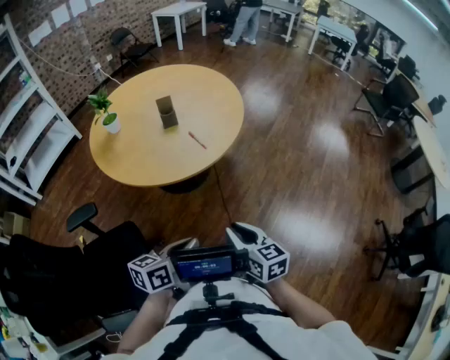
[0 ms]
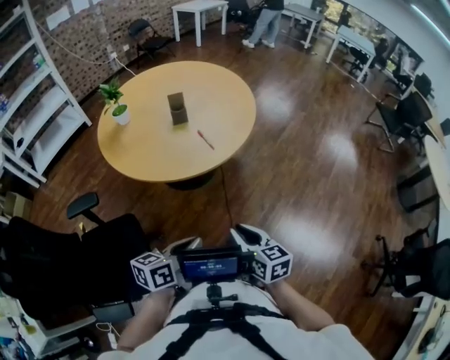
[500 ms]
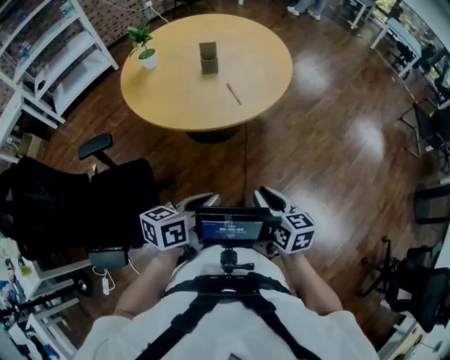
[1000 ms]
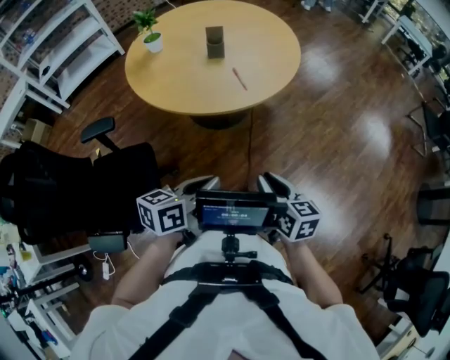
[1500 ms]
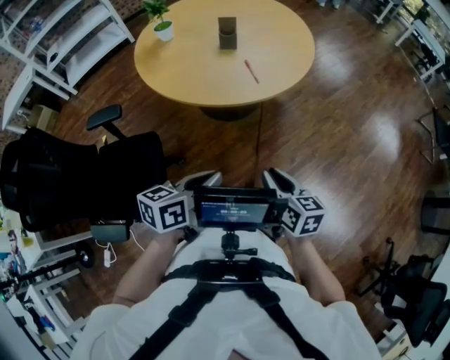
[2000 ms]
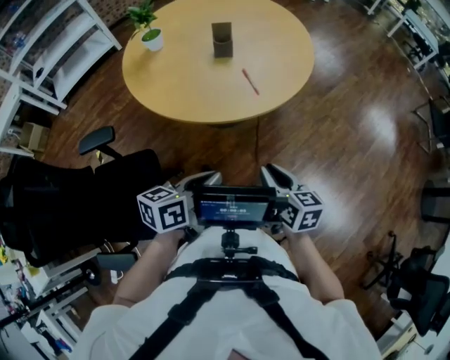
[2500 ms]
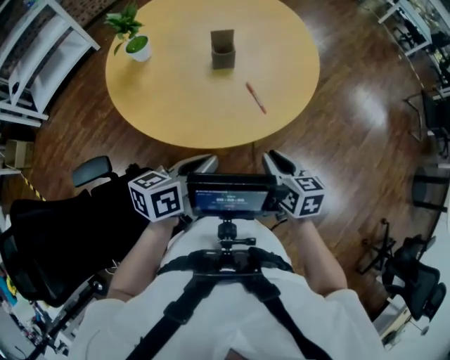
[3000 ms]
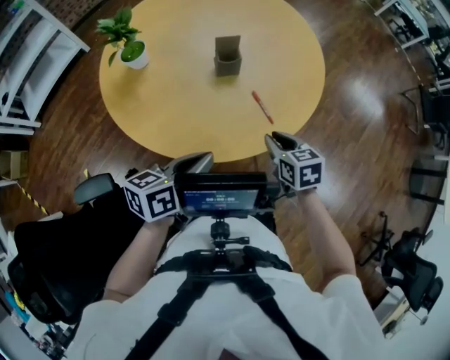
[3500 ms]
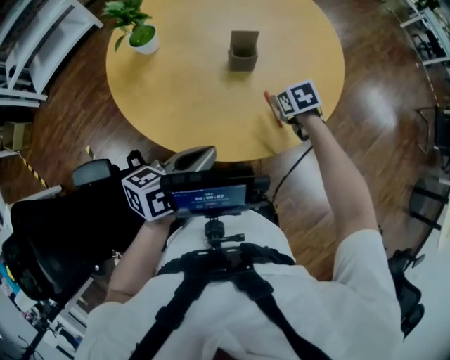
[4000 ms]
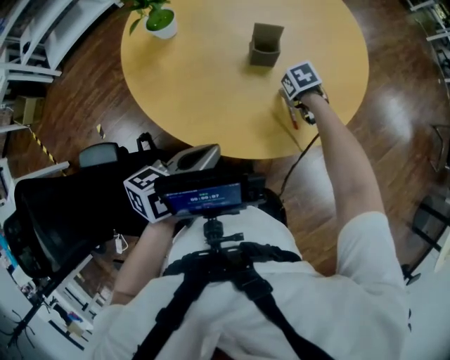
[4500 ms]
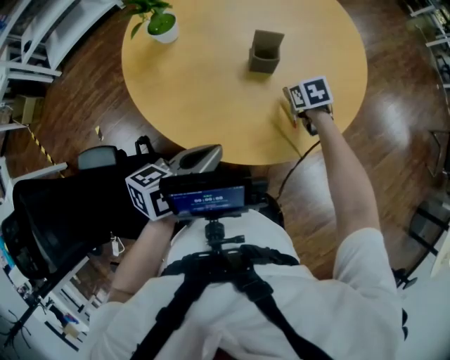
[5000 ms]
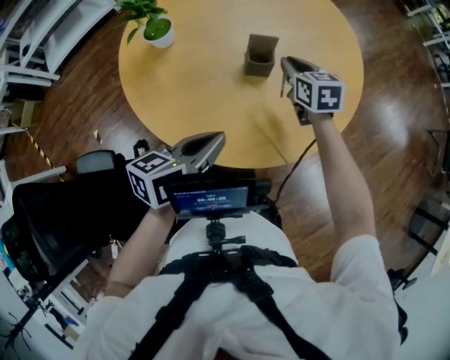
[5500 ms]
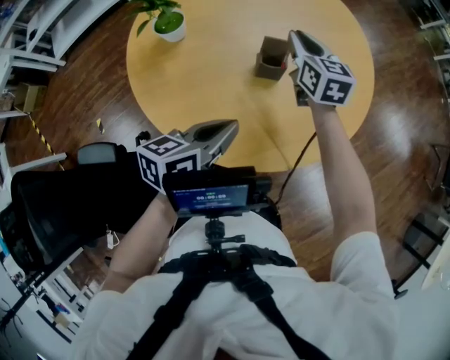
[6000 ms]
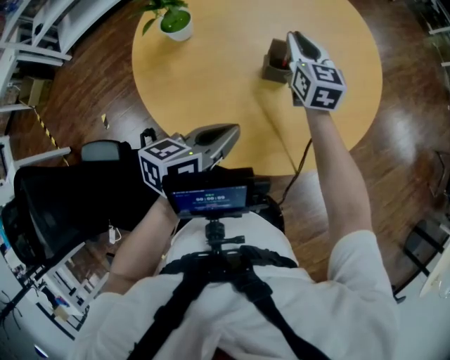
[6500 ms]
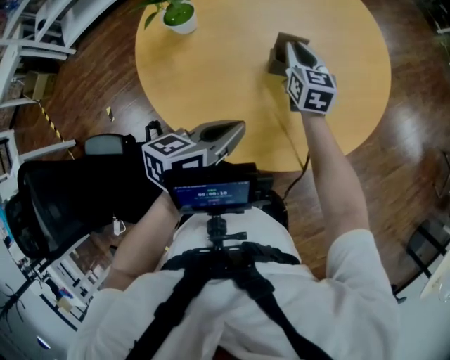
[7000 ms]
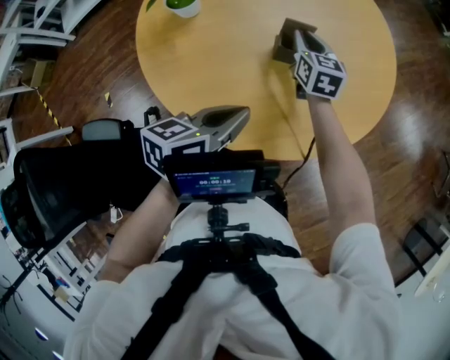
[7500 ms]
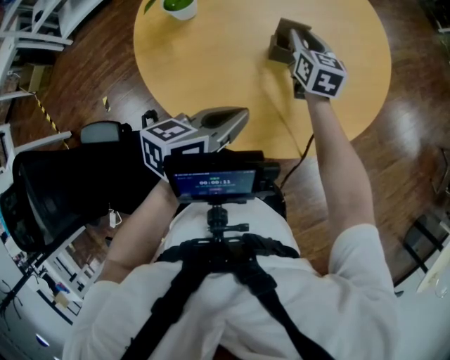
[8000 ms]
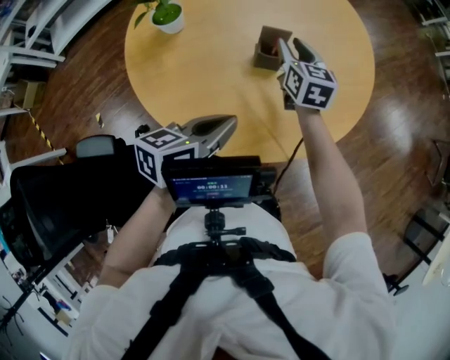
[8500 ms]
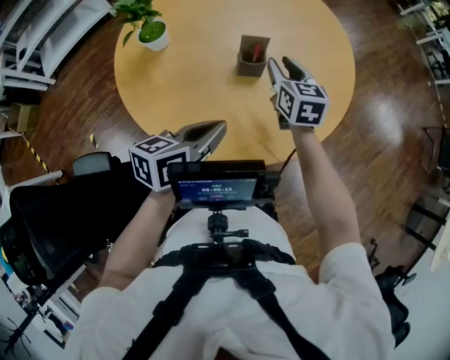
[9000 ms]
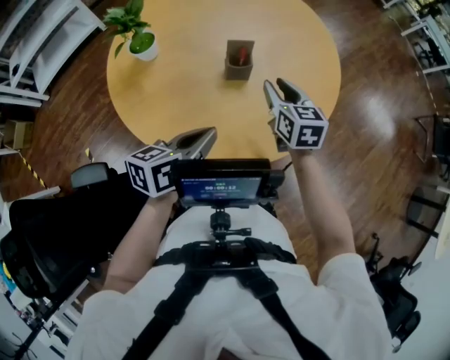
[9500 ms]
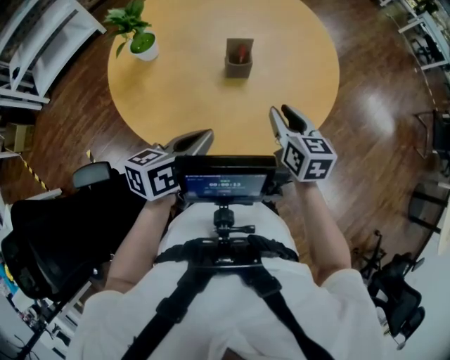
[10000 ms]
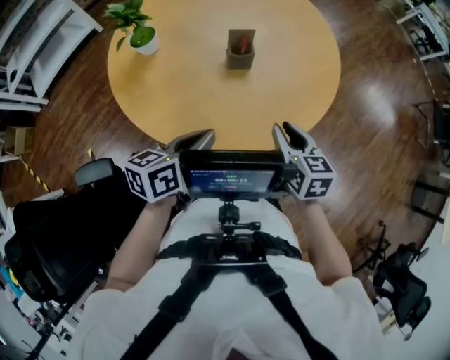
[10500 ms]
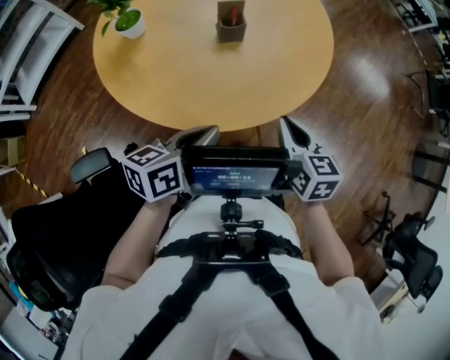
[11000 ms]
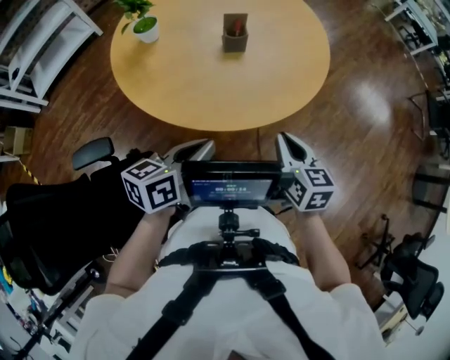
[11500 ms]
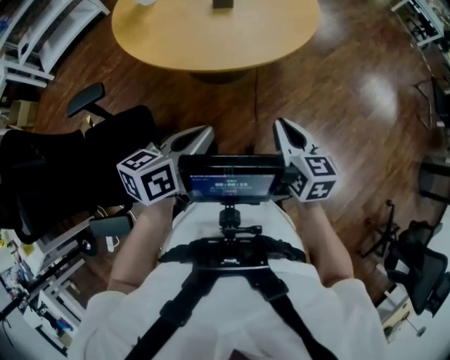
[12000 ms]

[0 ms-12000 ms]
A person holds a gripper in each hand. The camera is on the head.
0 ms to 2000 ms: The right gripper moves some 5 cm.
2000 ms to 4000 ms: The left gripper moves forward and to the left, about 35 cm; the right gripper goes roughly 50 cm forward, and points its fingers some 40 degrees further downward.
4000 ms to 6000 ms: The left gripper ends up about 10 cm from where it was. The right gripper shifts roughly 20 cm upward, and tilts its fingers about 50 degrees upward.
6000 ms to 8000 ms: The right gripper moves downward, some 5 cm.
8000 ms to 10000 ms: The right gripper moves backward and to the right, some 20 cm.
10000 ms to 12000 ms: The grippers both shift backward and to the right by some 35 cm. The right gripper closes up.

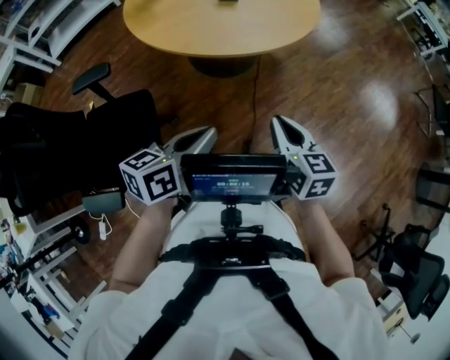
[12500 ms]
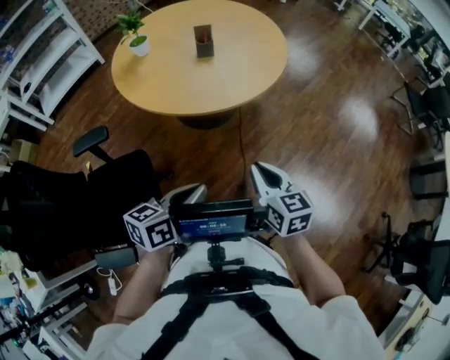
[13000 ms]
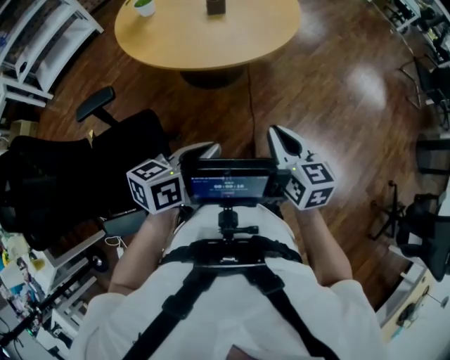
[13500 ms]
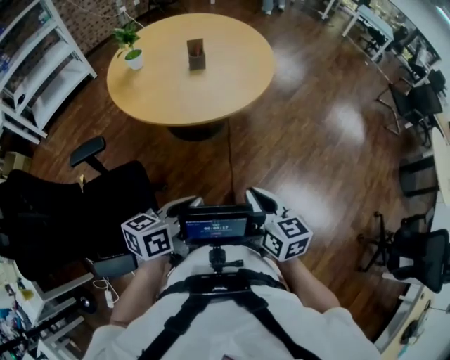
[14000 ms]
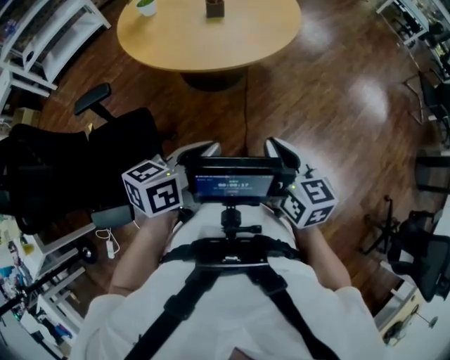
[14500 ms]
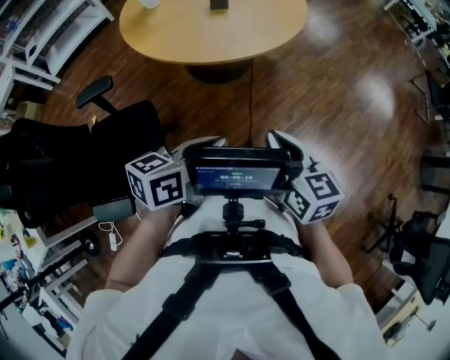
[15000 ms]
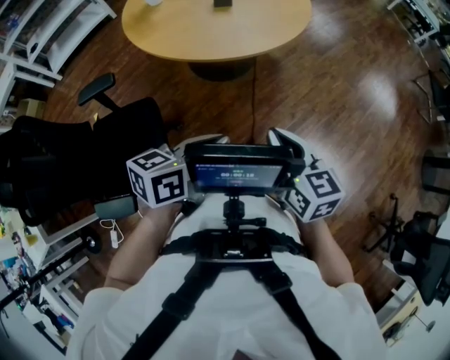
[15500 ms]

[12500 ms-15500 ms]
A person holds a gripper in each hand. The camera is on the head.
12500 ms to 14000 ms: The right gripper travels backward by approximately 10 cm.
14000 ms to 15500 ms: The grippers make only small movements.

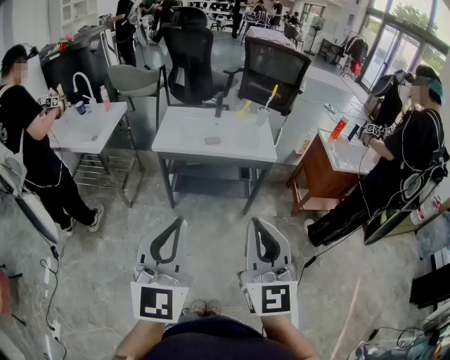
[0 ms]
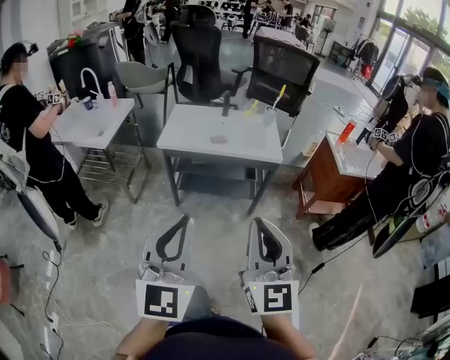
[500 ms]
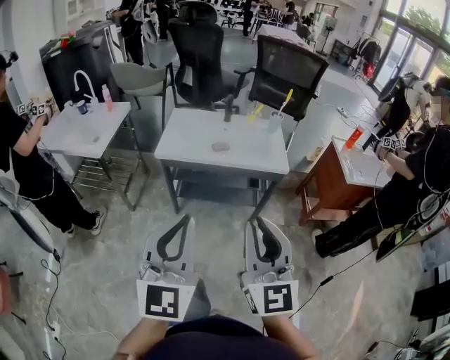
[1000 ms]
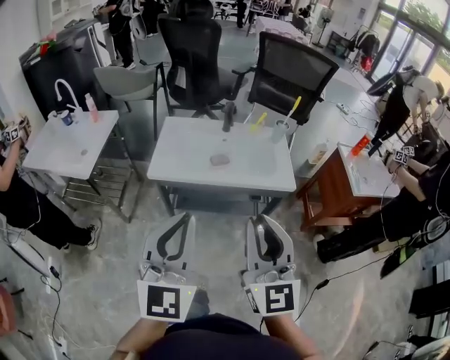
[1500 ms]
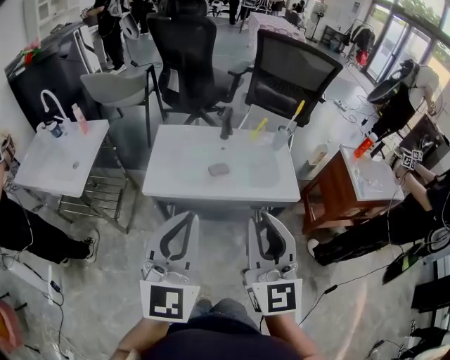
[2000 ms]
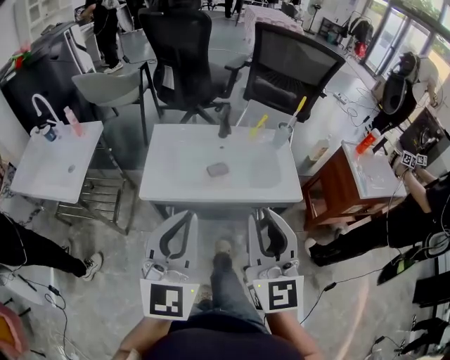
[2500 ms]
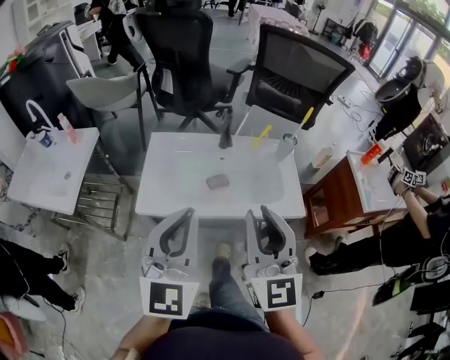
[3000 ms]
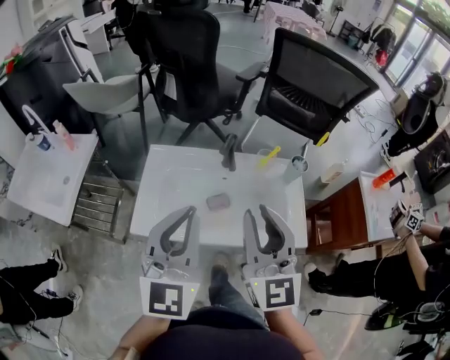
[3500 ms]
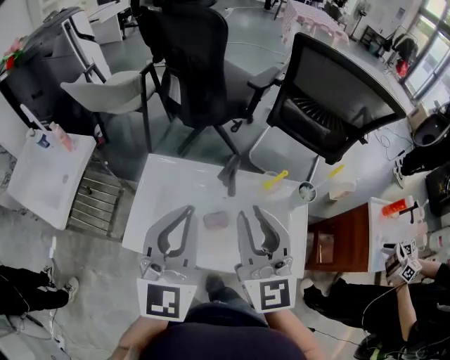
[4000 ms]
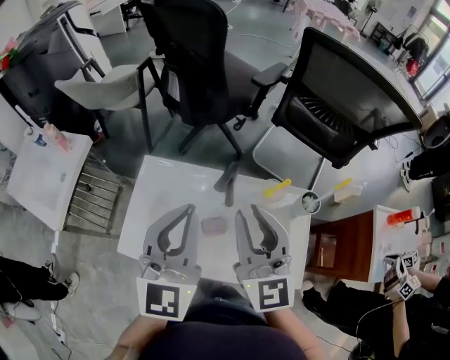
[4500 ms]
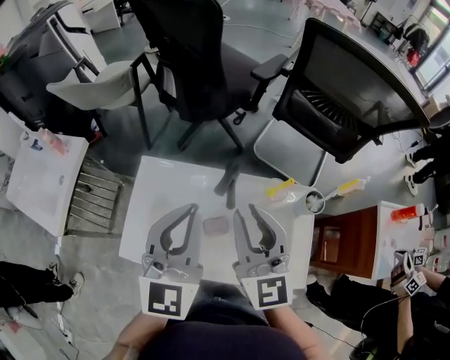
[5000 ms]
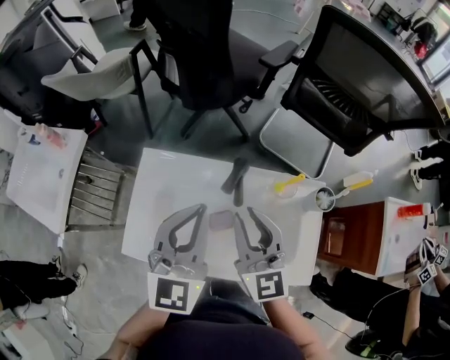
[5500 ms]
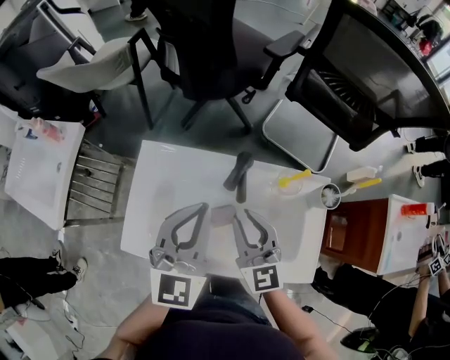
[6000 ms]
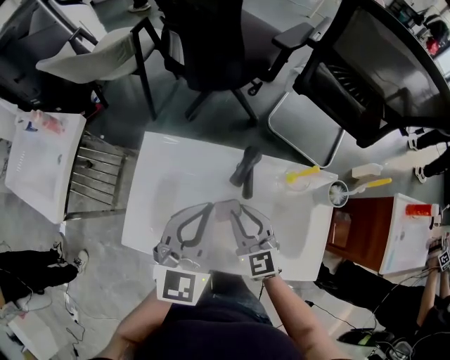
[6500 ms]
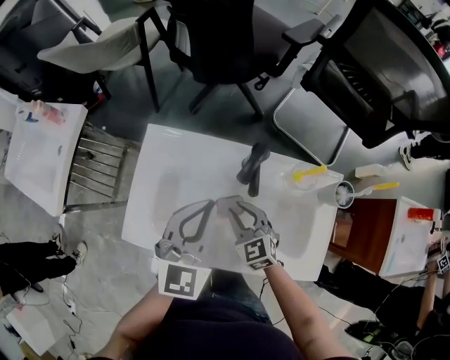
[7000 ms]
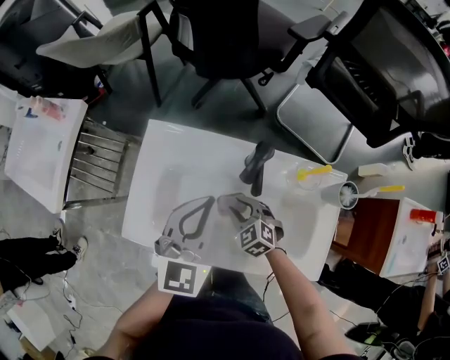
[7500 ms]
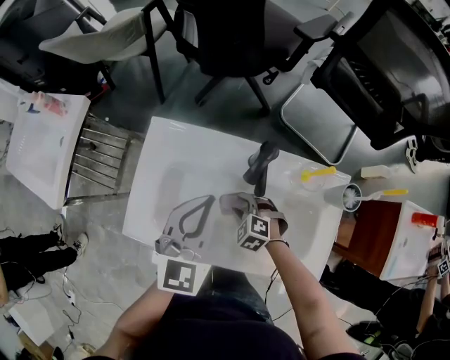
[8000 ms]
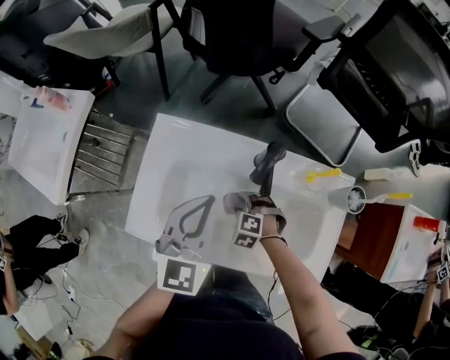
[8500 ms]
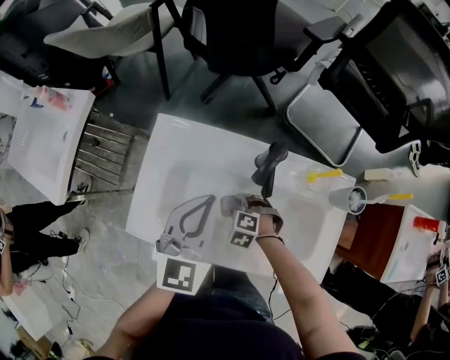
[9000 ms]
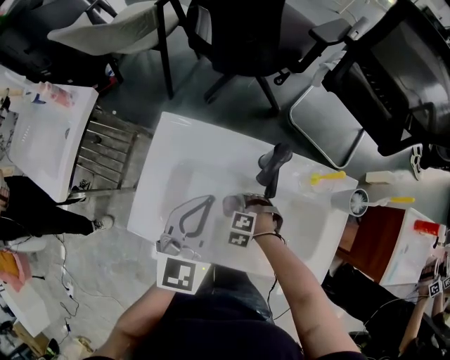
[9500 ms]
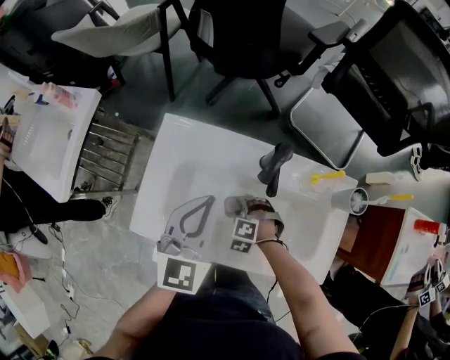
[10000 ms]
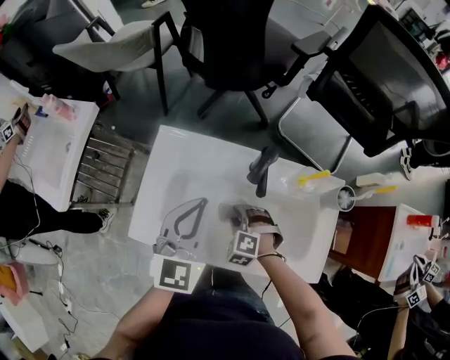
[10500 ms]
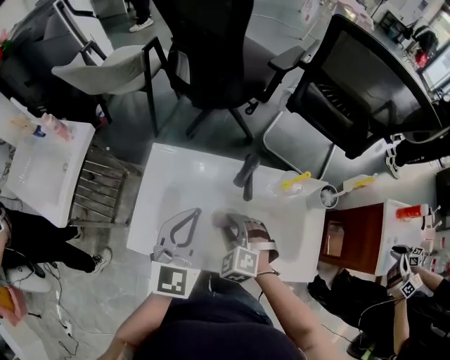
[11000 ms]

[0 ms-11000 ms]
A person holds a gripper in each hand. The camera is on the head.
0 ms to 2000 ms: The two grippers go about 35 cm forward.
2000 ms to 3500 ms: The grippers both shift forward by about 25 cm.
3500 ms to 5500 ms: The right gripper goes about 25 cm forward and downward. The left gripper heads forward, covering roughly 20 cm.
5500 ms to 7500 ms: The right gripper moves downward, roughly 30 cm, and tilts its fingers roughly 50 degrees downward. The left gripper moves downward, roughly 10 cm.
7500 ms to 9000 ms: The right gripper is displaced downward by some 5 cm, and swivels some 30 degrees.
9000 ms to 11000 ms: The left gripper moves some 5 cm. The right gripper shifts about 15 cm upward, and turns by about 30 degrees.

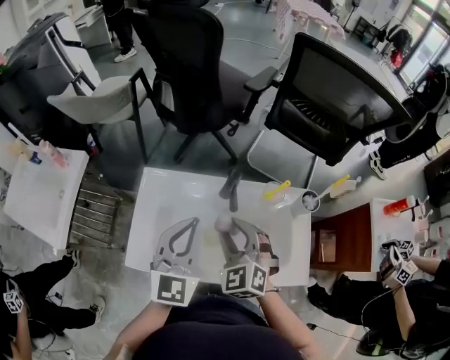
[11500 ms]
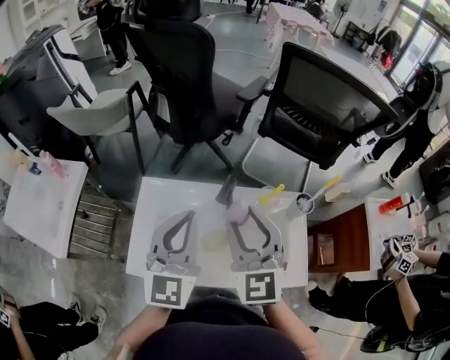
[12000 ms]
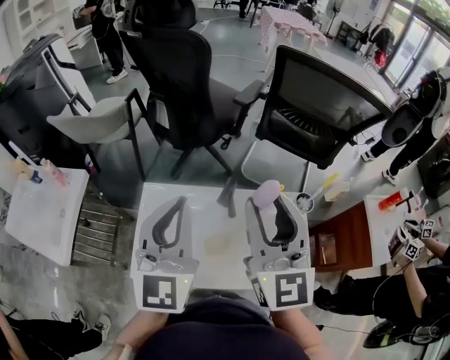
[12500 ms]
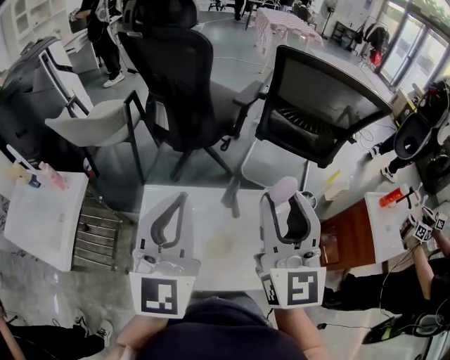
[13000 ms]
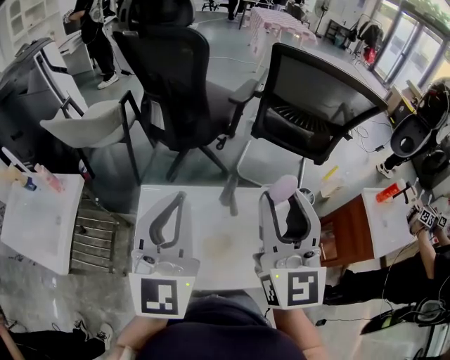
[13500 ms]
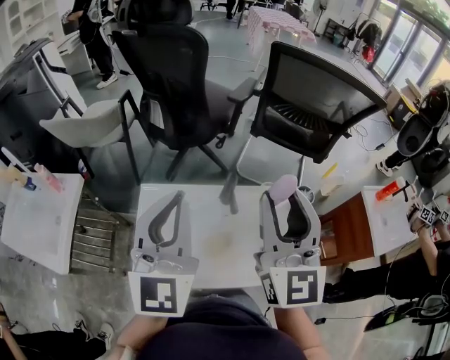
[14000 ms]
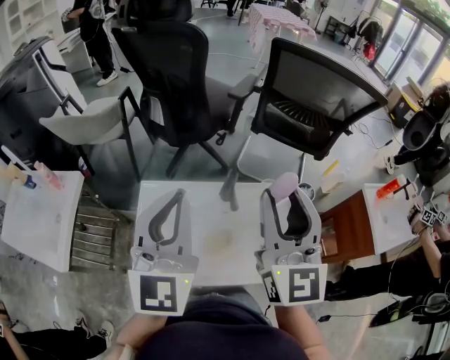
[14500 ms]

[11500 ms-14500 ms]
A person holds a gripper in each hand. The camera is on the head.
11500 ms to 13000 ms: The left gripper moves upward, roughly 15 cm. Meanwhile the right gripper is displaced upward by some 25 cm, and tips its fingers upward by some 40 degrees.
13000 ms to 14500 ms: Both grippers stay put.
